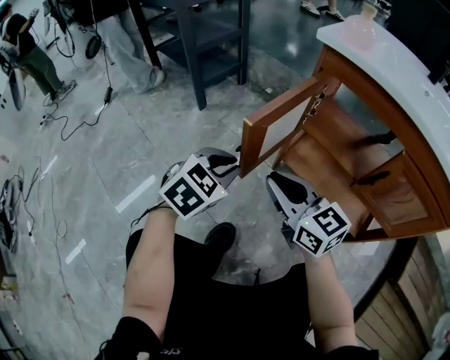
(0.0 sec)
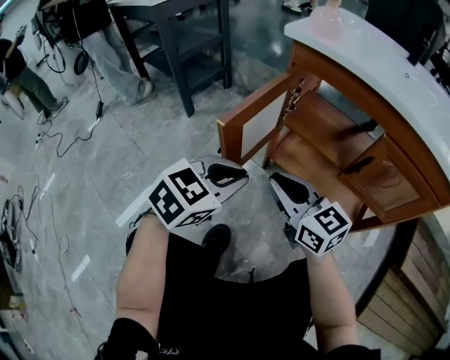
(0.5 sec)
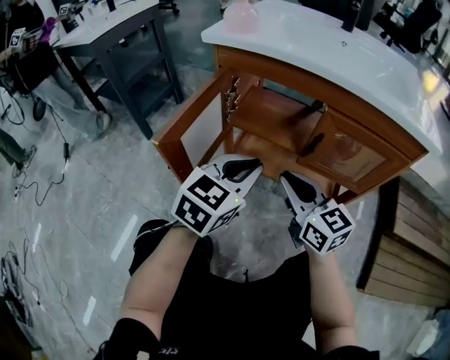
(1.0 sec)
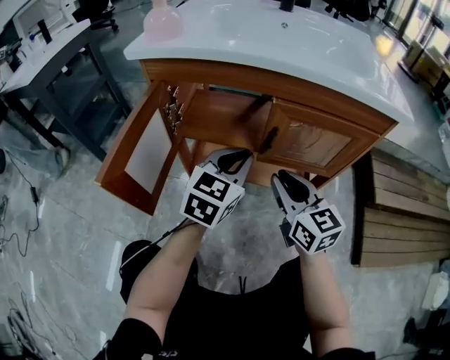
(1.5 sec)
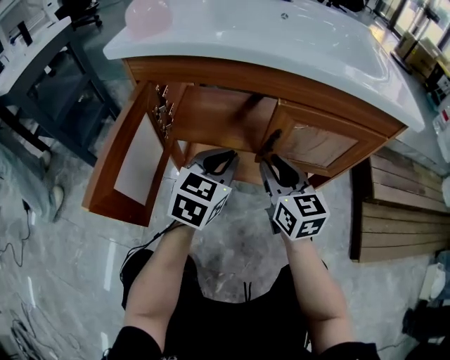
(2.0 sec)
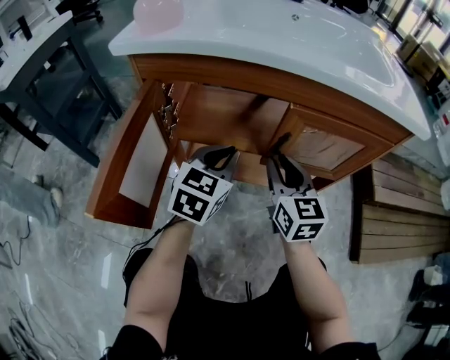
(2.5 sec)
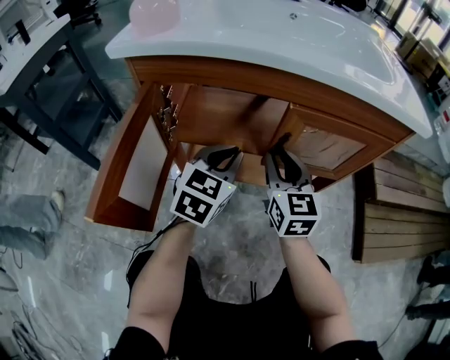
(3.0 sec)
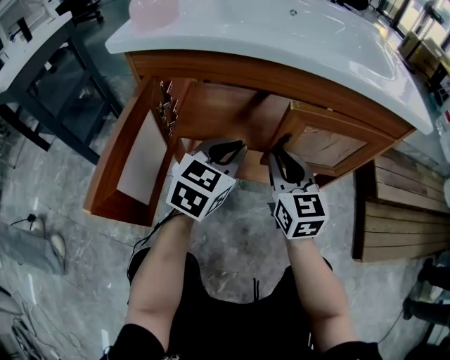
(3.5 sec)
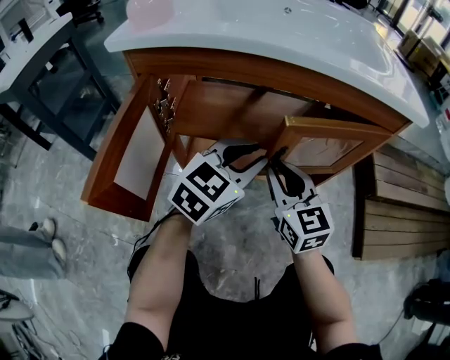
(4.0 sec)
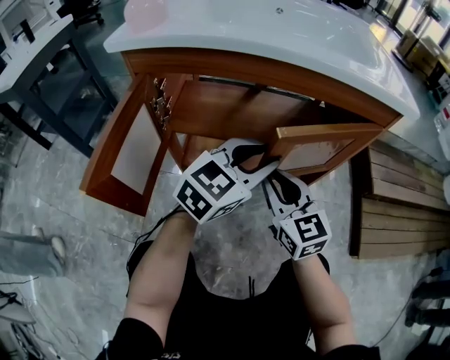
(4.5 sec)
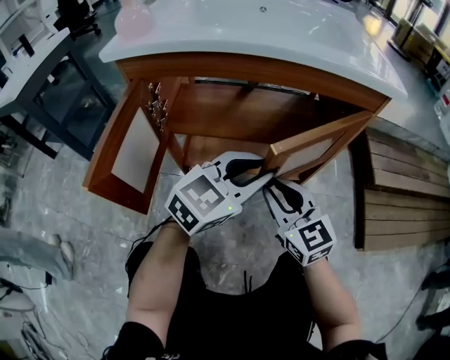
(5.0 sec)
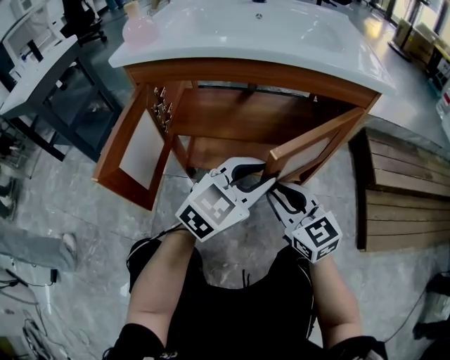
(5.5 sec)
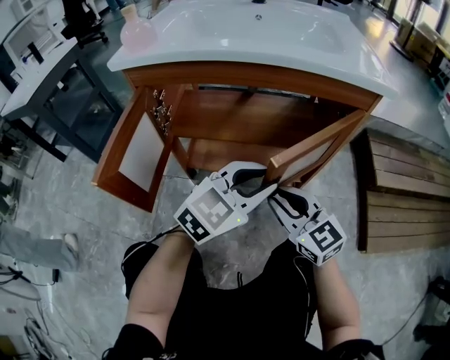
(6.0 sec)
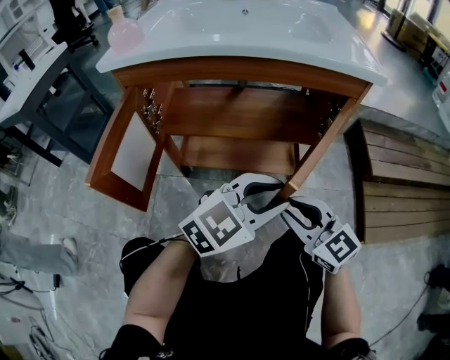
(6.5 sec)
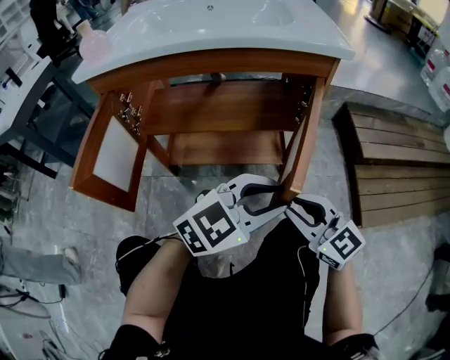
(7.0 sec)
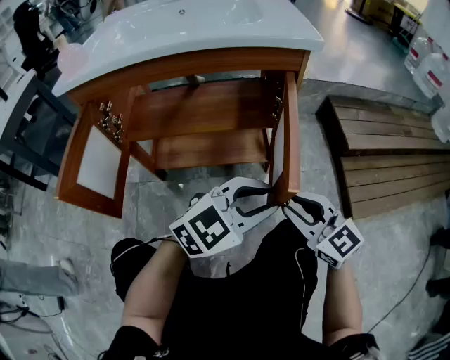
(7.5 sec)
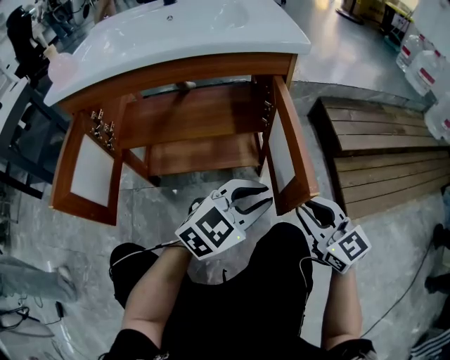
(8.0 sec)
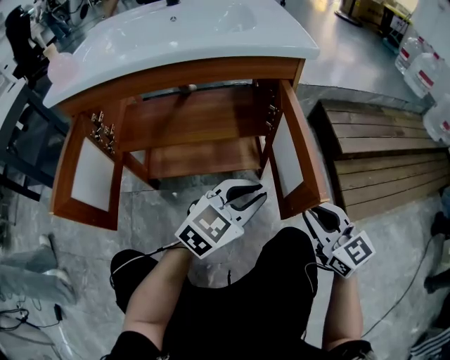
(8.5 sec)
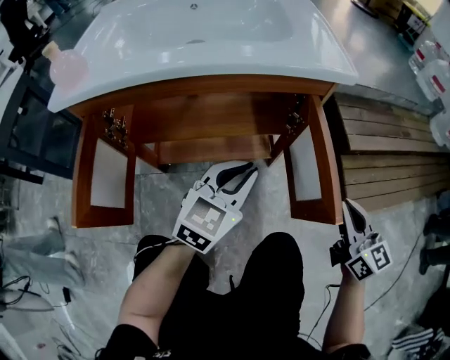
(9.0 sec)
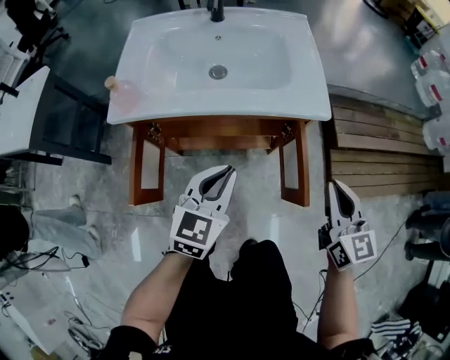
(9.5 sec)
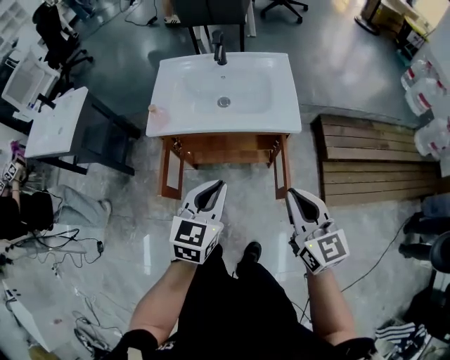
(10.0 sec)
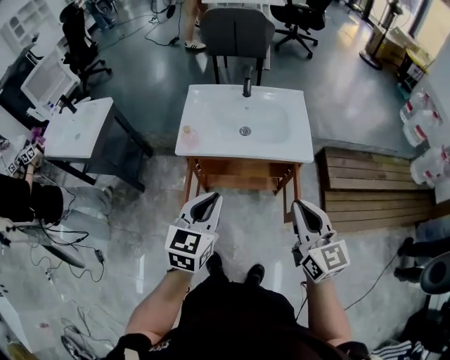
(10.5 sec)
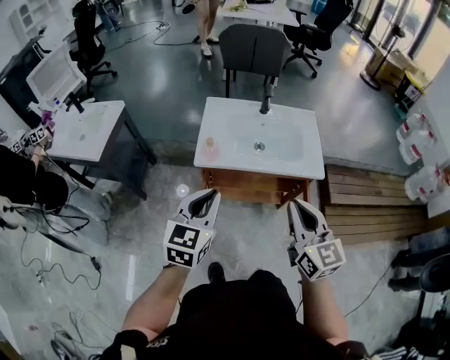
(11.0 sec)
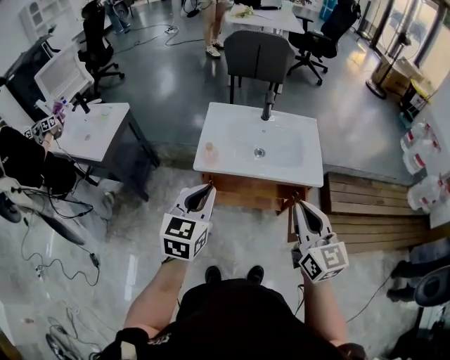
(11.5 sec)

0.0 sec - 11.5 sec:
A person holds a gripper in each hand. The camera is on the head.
0.0 sec - 2.0 sec: The right gripper moves some 30 cm, and swivels roughly 60 degrees, while the left gripper moves some 10 cm upward and comes back, and swivels some 30 degrees.
2.0 sec - 4.0 sec: The left gripper shifts approximately 5 cm to the right.
4.0 sec - 6.0 sec: The right gripper heads backward and to the right, covering roughly 10 cm, while the left gripper shifts about 15 cm to the right and backward.
6.0 sec - 7.5 sec: The left gripper moves to the right and backward, about 15 cm, and swivels roughly 20 degrees. Meanwhile the right gripper heads to the right, covering about 15 cm.
7.5 sec - 9.5 sec: The right gripper heads upward, covering some 30 cm, turns by about 30 degrees, and closes its fingers, while the left gripper travels upward and to the left by some 30 cm, and swivels approximately 40 degrees.
9.5 sec - 11.5 sec: Both grippers travel together upward and to the left, approximately 40 cm.

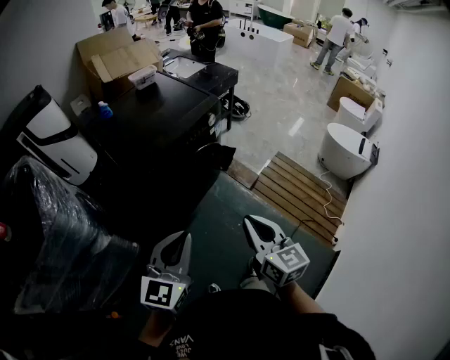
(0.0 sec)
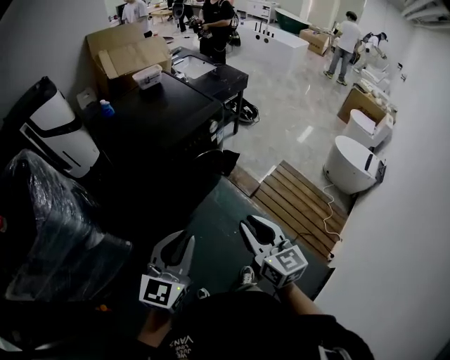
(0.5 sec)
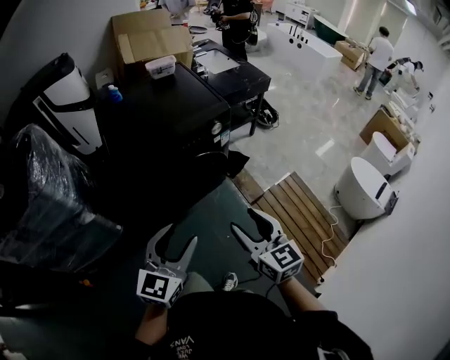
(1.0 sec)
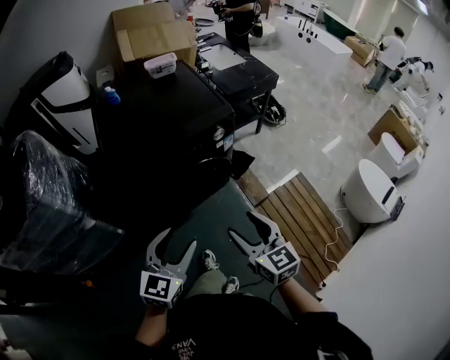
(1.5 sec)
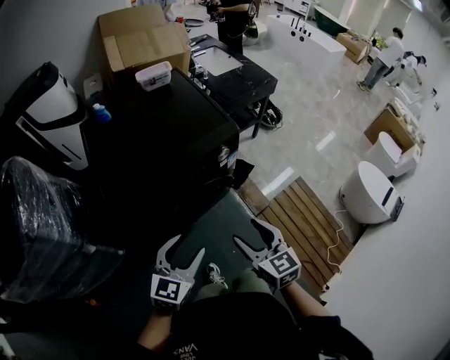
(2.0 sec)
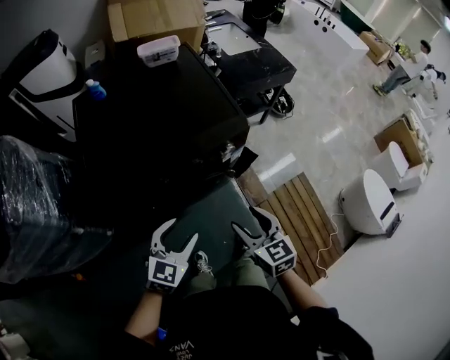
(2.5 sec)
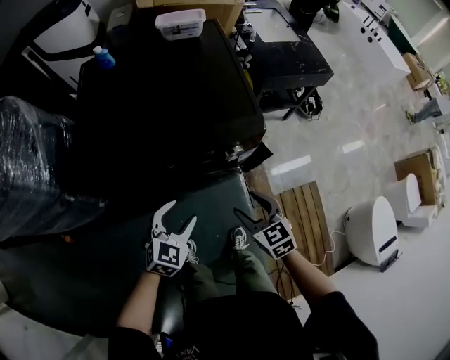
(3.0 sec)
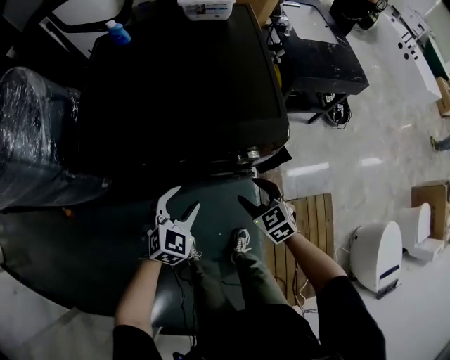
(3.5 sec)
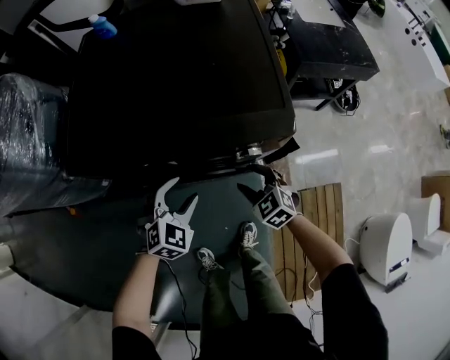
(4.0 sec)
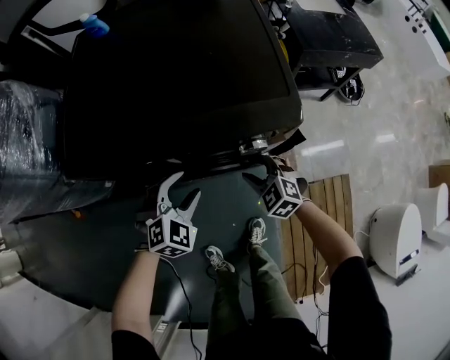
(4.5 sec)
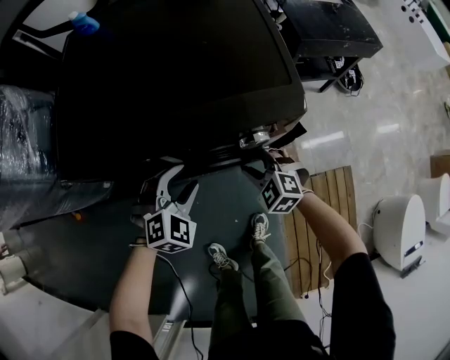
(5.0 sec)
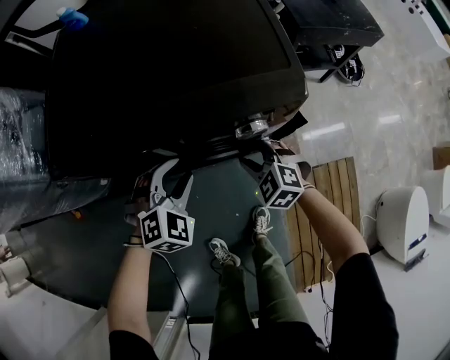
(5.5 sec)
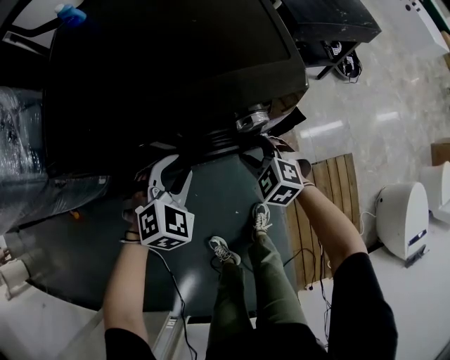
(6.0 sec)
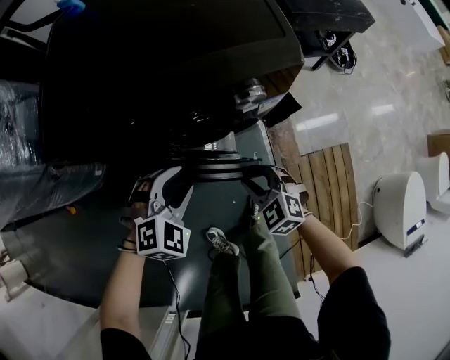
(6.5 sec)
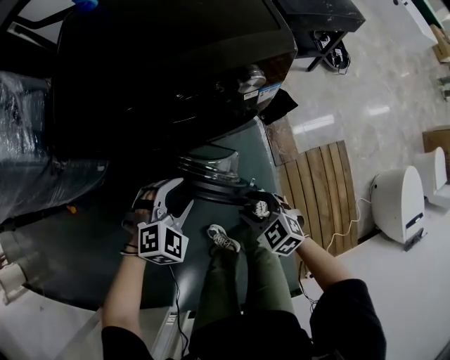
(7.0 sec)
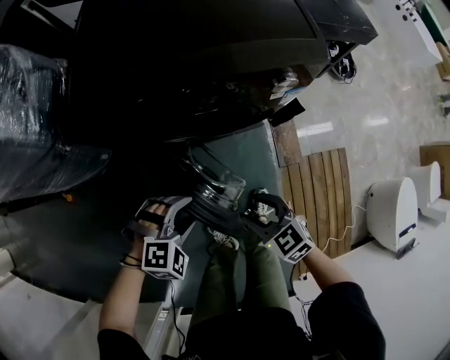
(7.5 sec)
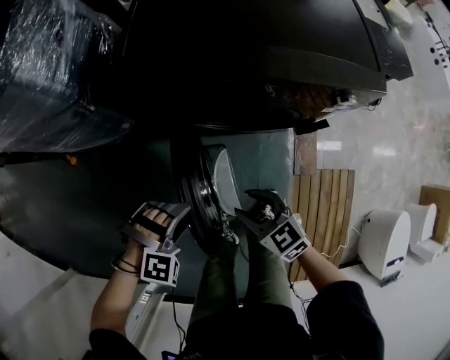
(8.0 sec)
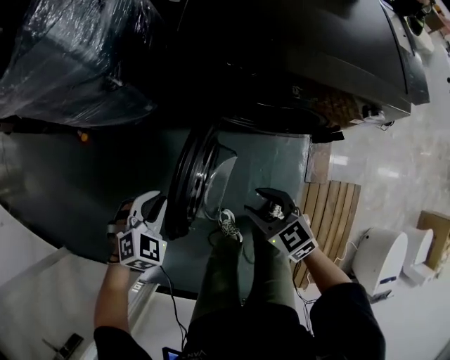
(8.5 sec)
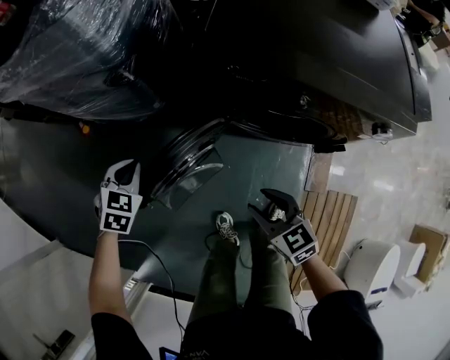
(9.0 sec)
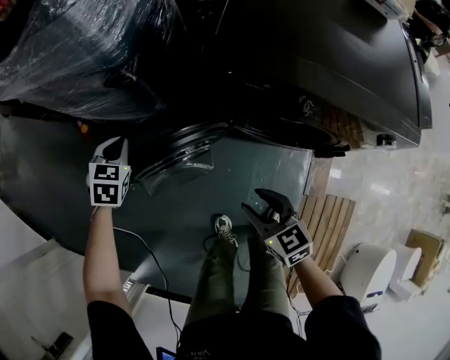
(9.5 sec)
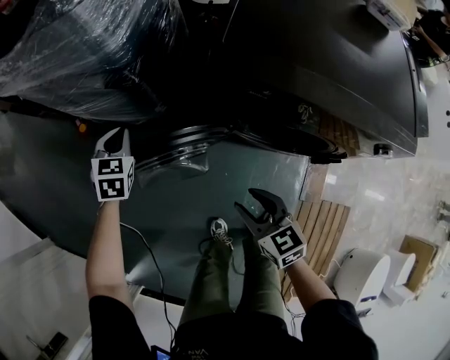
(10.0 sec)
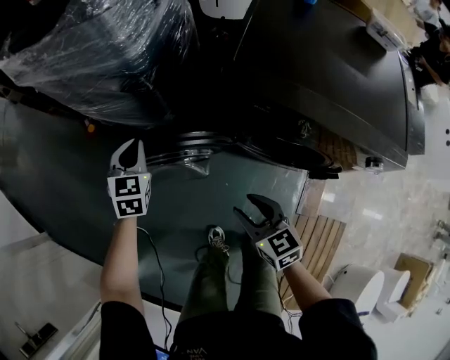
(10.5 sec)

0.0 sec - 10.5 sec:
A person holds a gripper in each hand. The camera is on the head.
0.0 sec - 2.0 sec: The right gripper travels forward by approximately 25 cm, rotates some 30 degrees, and opens up, while the left gripper travels forward, to the right and downward by roughly 30 cm, and opens its fingers.
2.0 sec - 4.0 sec: The left gripper ends up approximately 30 cm from where it was, and swivels about 40 degrees. The right gripper goes some 25 cm downward, and changes its angle by roughly 60 degrees.
4.0 sec - 6.5 sec: The left gripper moves backward, some 5 cm, and changes its angle by roughly 20 degrees. The right gripper shifts roughly 10 cm backward, and closes its fingers.
6.5 sec - 8.5 sec: The left gripper ends up about 35 cm from where it was, rotates approximately 30 degrees, and closes up. The right gripper moves approximately 25 cm, and turns by roughly 20 degrees.
8.5 sec - 10.5 sec: The left gripper goes about 20 cm forward, and changes its angle by roughly 60 degrees. The right gripper moves forward, approximately 10 cm.

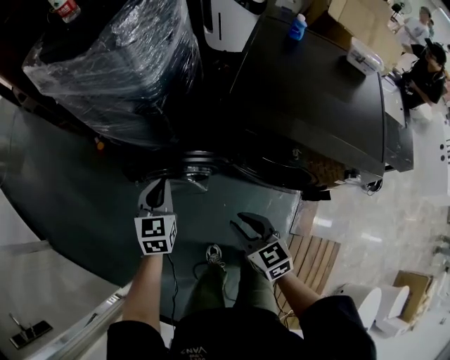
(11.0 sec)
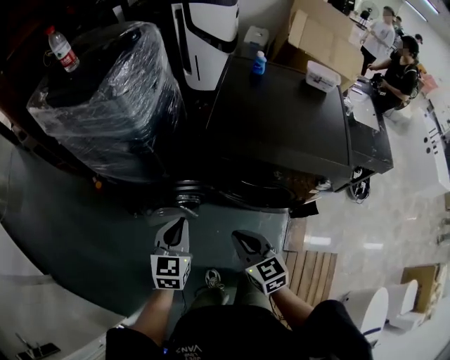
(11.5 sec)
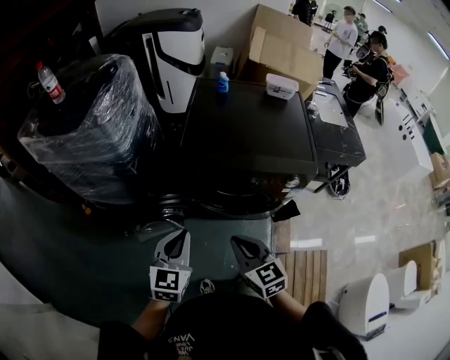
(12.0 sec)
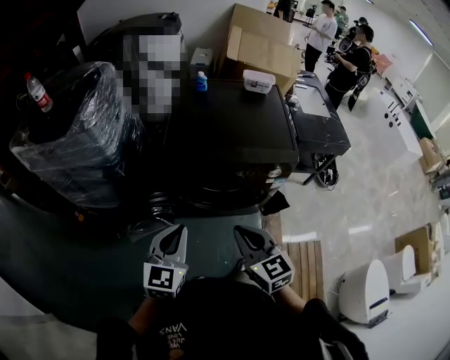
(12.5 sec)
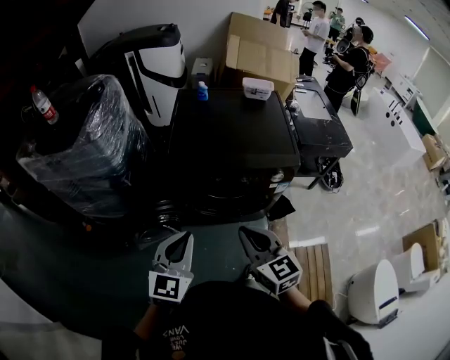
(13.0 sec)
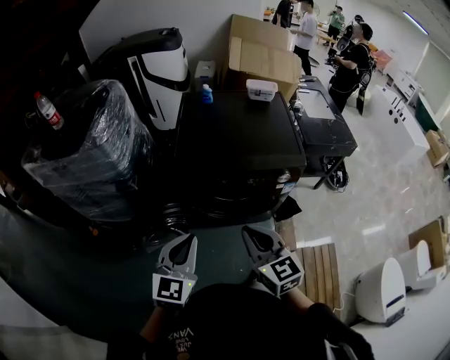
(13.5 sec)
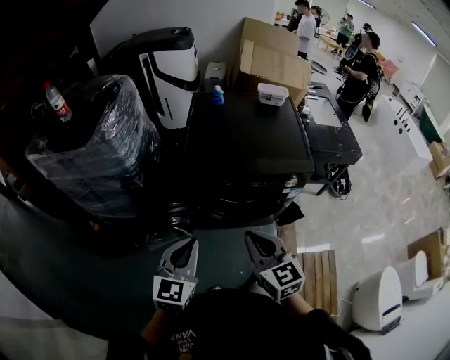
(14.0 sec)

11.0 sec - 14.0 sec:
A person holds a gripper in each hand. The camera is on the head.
11.0 sec - 12.5 sec: The left gripper changes place by roughly 30 cm, and swivels roughly 30 degrees. Meanwhile the right gripper moves upward, approximately 20 cm, rotates about 30 degrees, and closes.
12.5 sec - 14.0 sec: The grippers make only small movements.

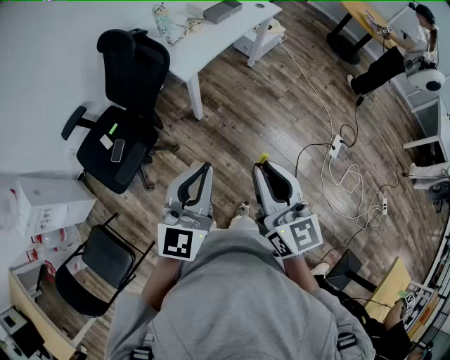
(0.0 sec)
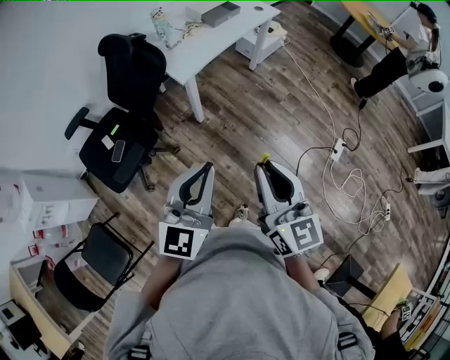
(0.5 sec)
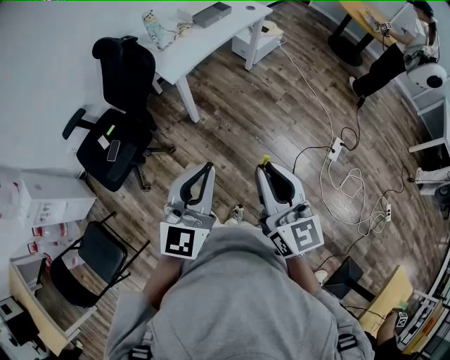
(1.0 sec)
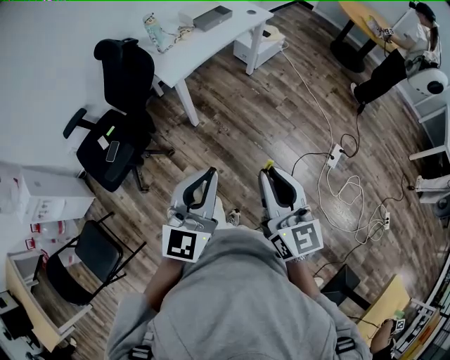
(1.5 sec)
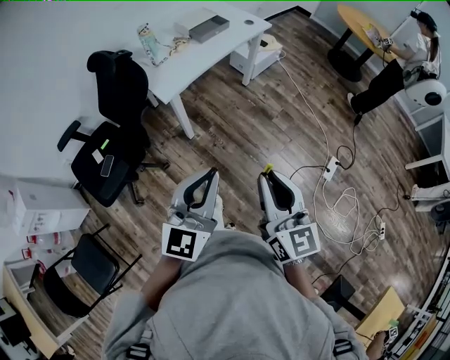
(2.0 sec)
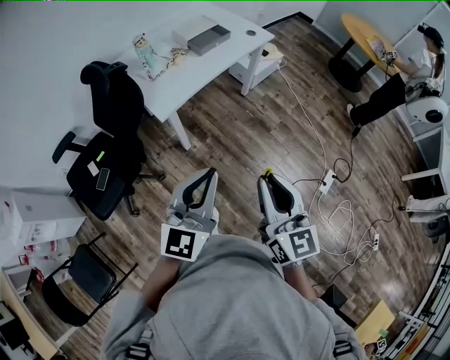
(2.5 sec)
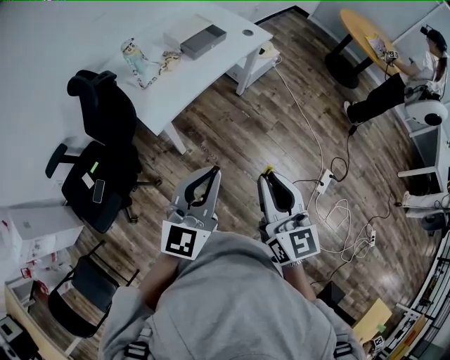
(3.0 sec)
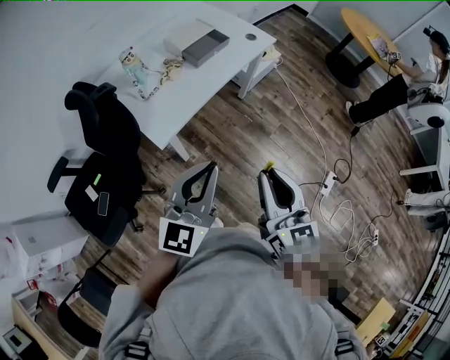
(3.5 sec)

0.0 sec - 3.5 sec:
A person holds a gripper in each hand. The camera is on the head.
0.0 sec - 2.0 sec: The two grippers go roughly 15 cm to the right.
2.0 sec - 3.5 sec: Both grippers travel together forward, some 25 cm.
